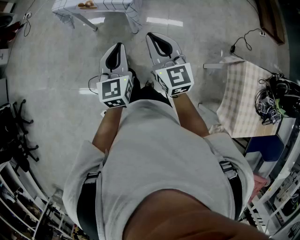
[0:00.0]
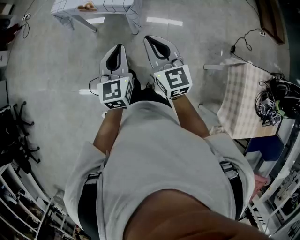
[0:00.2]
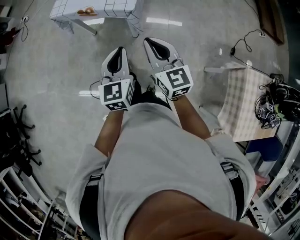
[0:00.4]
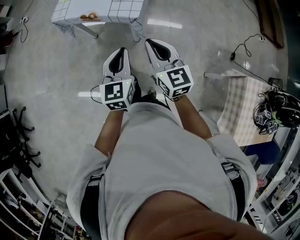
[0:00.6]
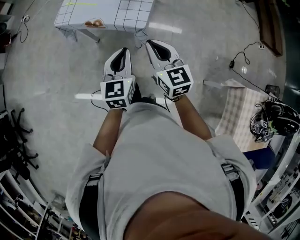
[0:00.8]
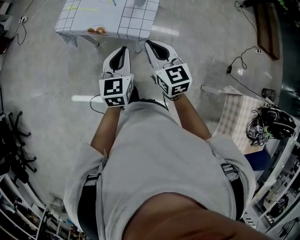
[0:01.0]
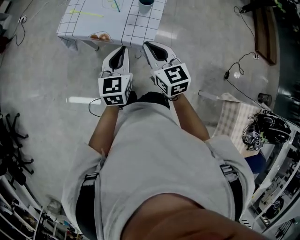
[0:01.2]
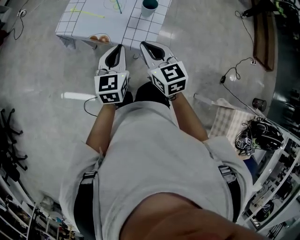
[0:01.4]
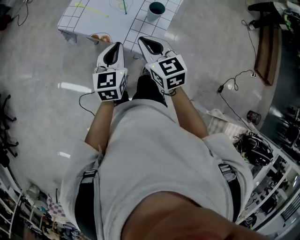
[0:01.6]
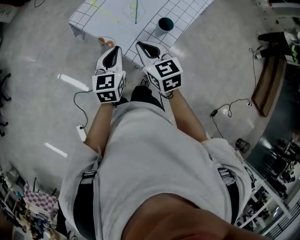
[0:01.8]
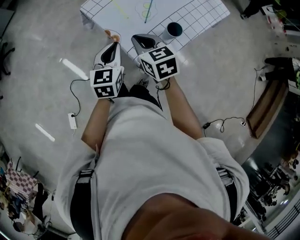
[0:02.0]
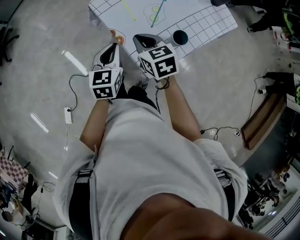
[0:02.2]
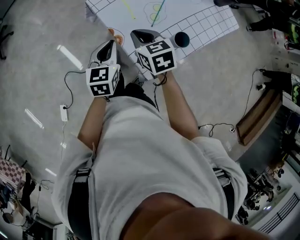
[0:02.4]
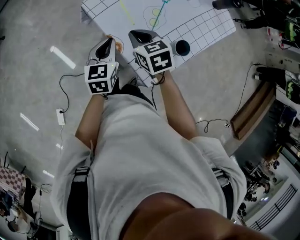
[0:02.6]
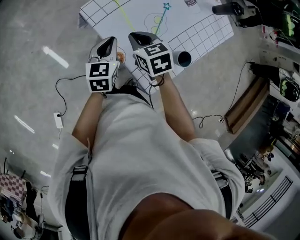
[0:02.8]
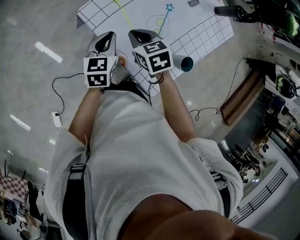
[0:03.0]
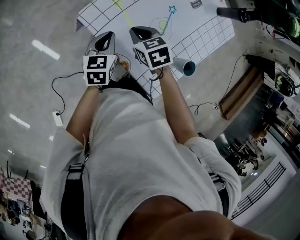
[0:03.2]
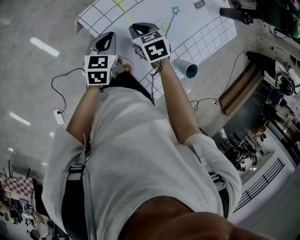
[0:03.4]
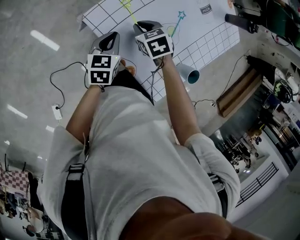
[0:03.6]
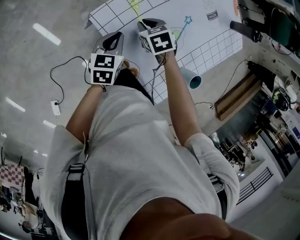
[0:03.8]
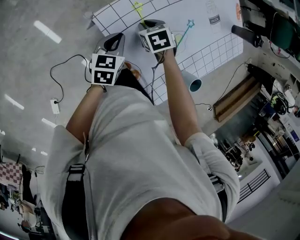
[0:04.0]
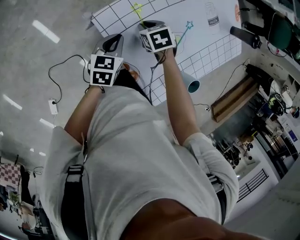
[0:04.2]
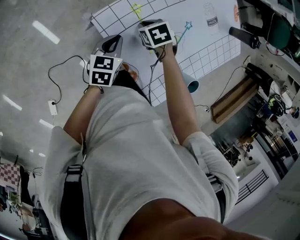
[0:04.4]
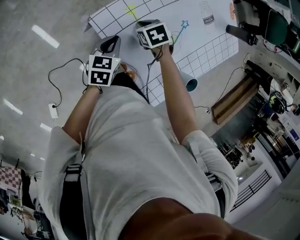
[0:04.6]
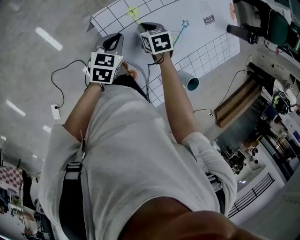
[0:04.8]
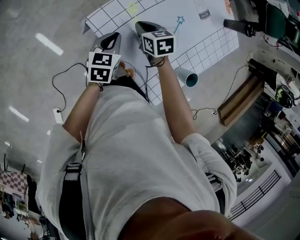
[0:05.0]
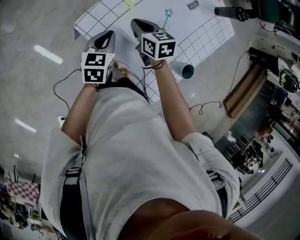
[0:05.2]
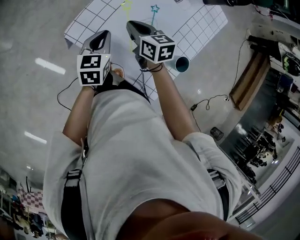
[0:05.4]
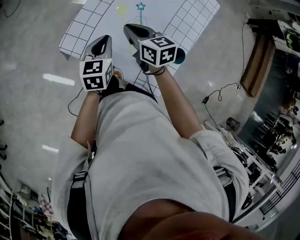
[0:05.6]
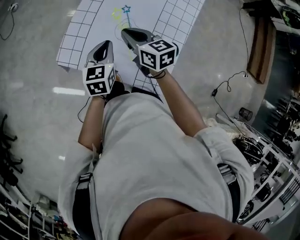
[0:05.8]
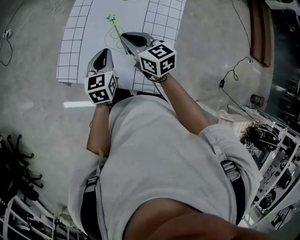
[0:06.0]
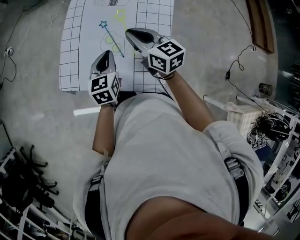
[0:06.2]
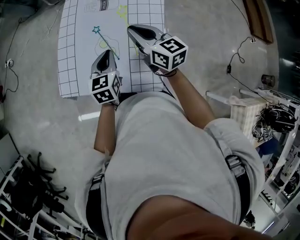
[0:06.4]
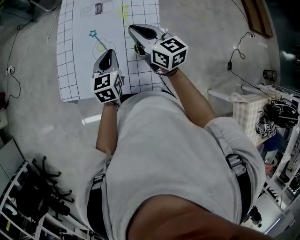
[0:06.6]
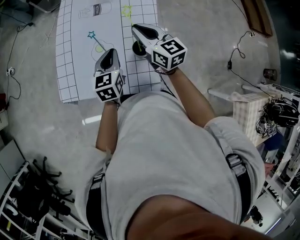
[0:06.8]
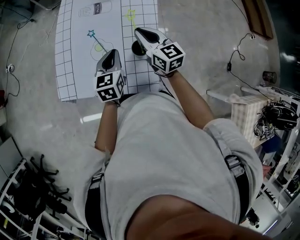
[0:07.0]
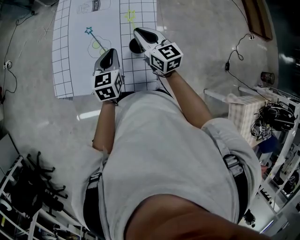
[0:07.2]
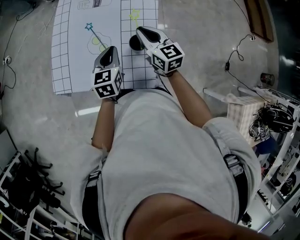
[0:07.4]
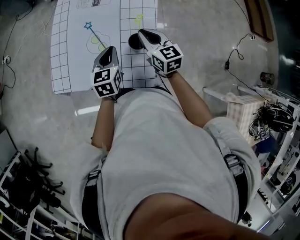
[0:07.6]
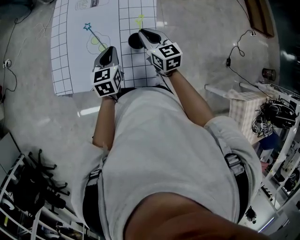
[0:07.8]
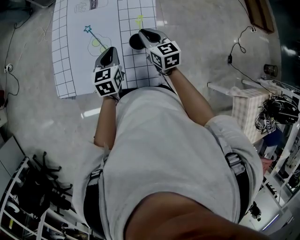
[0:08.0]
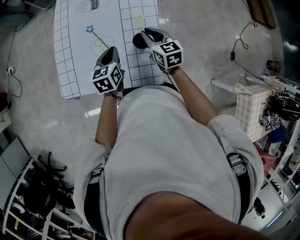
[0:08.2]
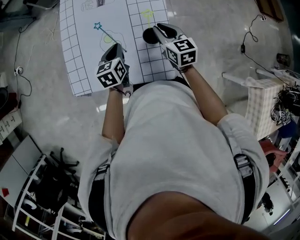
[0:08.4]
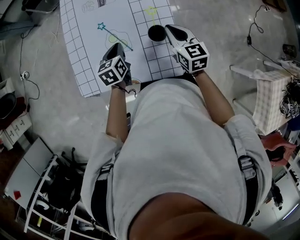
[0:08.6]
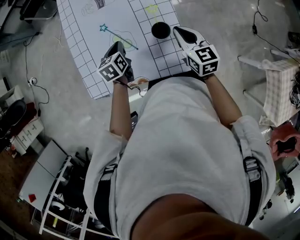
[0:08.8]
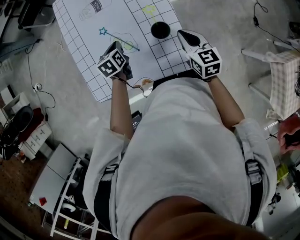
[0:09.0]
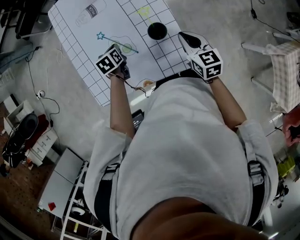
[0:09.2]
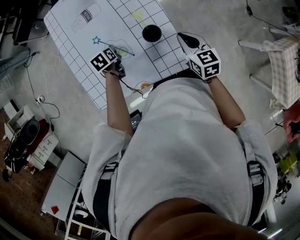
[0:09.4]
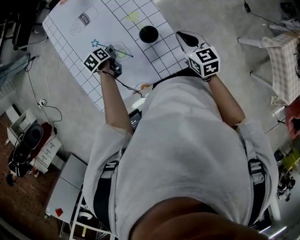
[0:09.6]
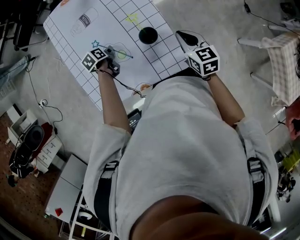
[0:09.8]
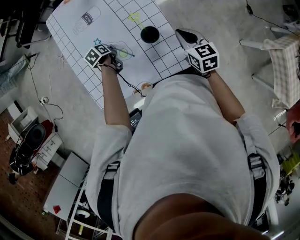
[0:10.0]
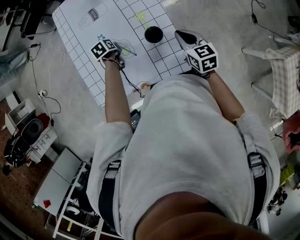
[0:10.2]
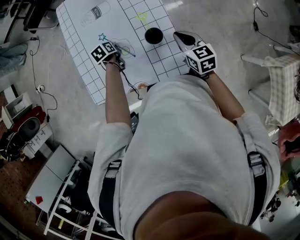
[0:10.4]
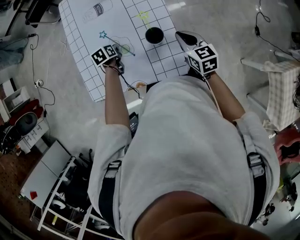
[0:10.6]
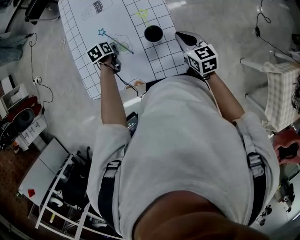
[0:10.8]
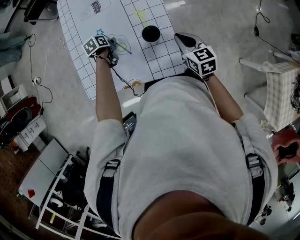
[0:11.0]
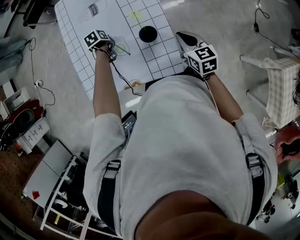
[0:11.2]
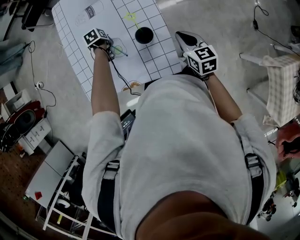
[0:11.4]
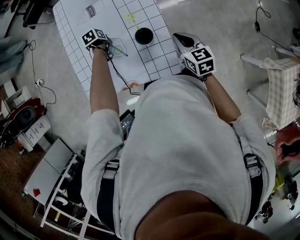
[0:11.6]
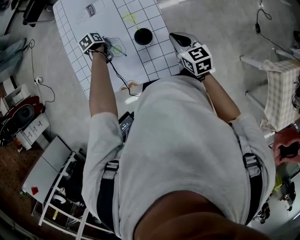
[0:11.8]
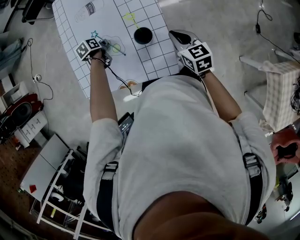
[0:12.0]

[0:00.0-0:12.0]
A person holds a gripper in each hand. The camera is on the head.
0:00.0 to 0:01.6: The two grippers travel together, forward, about 40 cm. The right gripper rotates roughly 30 degrees.
0:01.6 to 0:03.0: The left gripper changes place by approximately 30 cm, and swivels approximately 20 degrees. Meanwhile the right gripper ends up approximately 30 cm from where it was, and swivels about 40 degrees.
0:03.0 to 0:04.4: The left gripper travels downward by about 5 cm; the right gripper goes about 10 cm downward, and changes its angle by about 30 degrees.
0:04.4 to 0:06.0: The left gripper ends up approximately 25 cm from where it was, and swivels about 30 degrees. The right gripper moves about 30 cm, and tilts its fingers about 50 degrees upward.
0:06.0 to 0:07.6: Both grippers move to the right, some 15 cm. The right gripper turns by some 20 degrees.
0:07.6 to 0:09.0: The left gripper moves downward, to the left and forward, some 15 cm, and rotates about 20 degrees, while the right gripper is displaced backward by some 5 cm, and changes its angle by approximately 20 degrees.
0:09.0 to 0:10.4: The left gripper goes some 5 cm downward.
0:10.4 to 0:12.0: The grippers make only small movements.

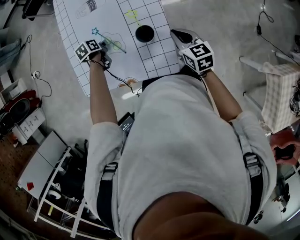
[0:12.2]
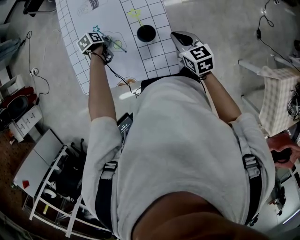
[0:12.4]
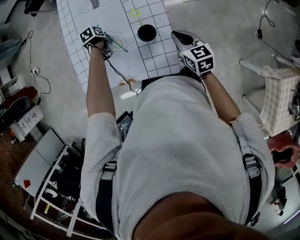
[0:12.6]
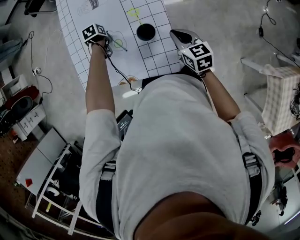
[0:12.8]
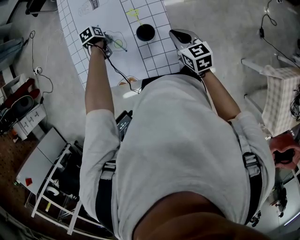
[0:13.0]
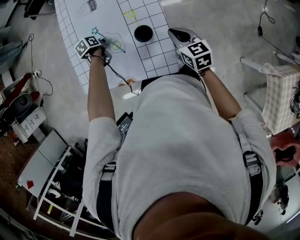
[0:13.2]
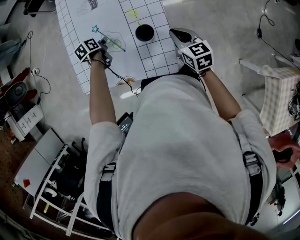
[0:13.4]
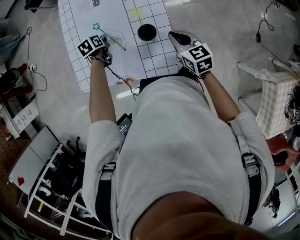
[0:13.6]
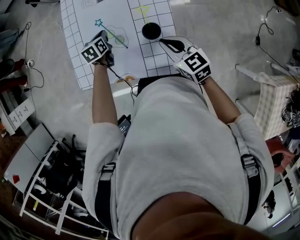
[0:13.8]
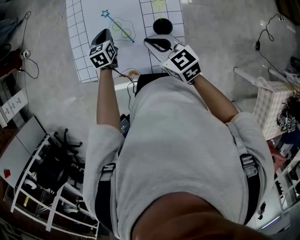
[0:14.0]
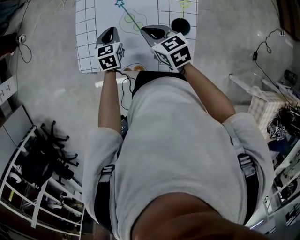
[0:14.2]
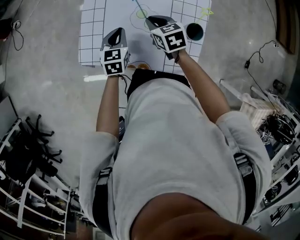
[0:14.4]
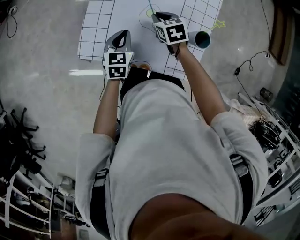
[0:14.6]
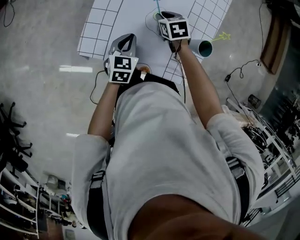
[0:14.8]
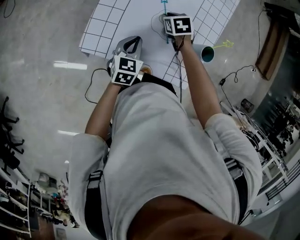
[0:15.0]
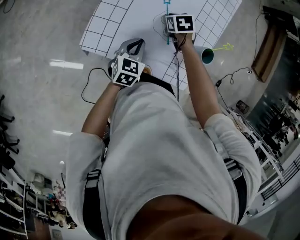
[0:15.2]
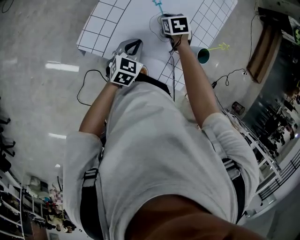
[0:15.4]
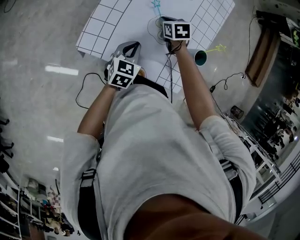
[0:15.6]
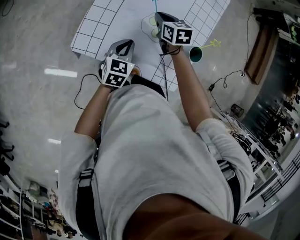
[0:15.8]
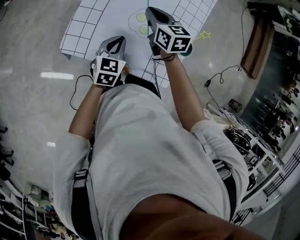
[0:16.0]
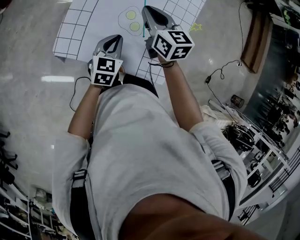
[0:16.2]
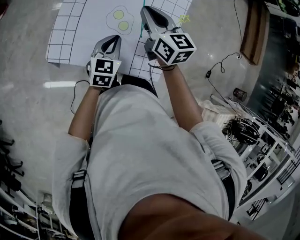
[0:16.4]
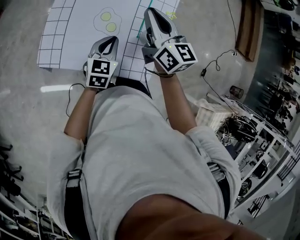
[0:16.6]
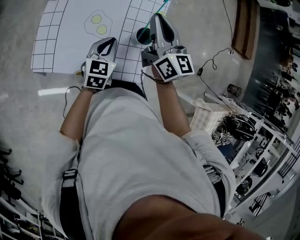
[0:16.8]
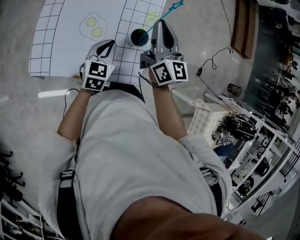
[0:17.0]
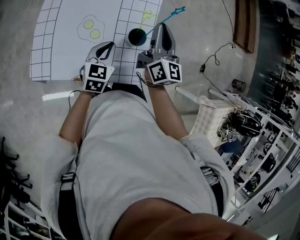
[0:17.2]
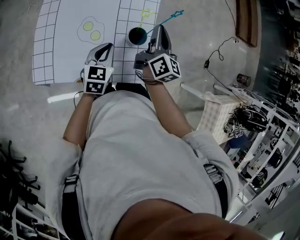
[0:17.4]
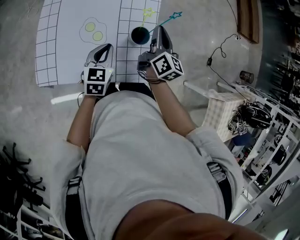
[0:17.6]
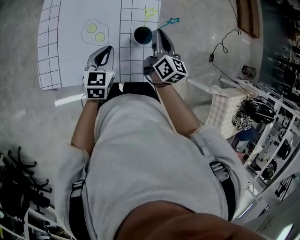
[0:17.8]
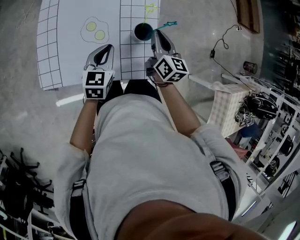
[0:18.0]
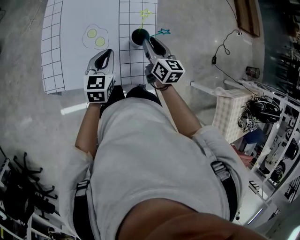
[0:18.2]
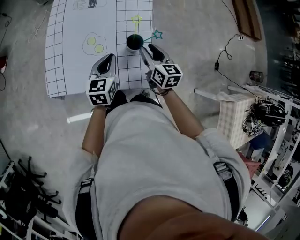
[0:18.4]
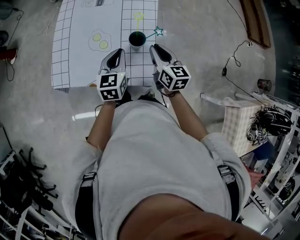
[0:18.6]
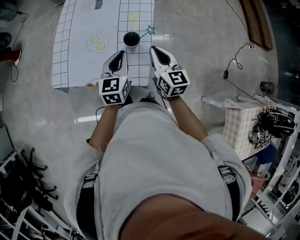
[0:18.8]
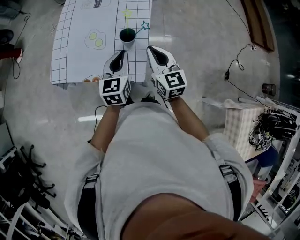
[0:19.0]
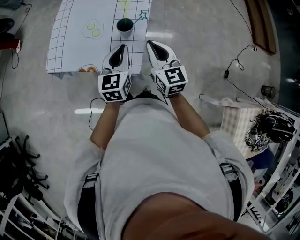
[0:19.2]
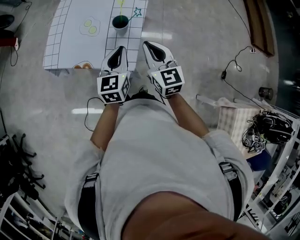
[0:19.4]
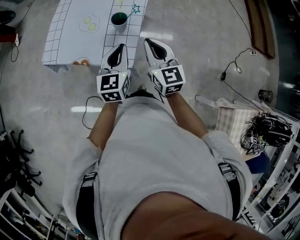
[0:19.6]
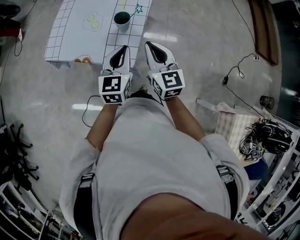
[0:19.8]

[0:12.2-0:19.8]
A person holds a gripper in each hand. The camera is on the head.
0:12.2 to 0:13.8: The left gripper rotates some 20 degrees. The right gripper changes place by some 10 cm.
0:13.8 to 0:15.2: The right gripper heads to the left, forward and downward, covering roughly 35 cm, and tips its fingers downward by about 40 degrees; the left gripper goes approximately 15 cm to the left and backward.
0:15.2 to 0:16.8: The right gripper moves upward and to the right, approximately 35 cm, and tilts its fingers some 70 degrees upward. Meanwhile the left gripper moves to the right and upward, approximately 20 cm.
0:16.8 to 0:18.2: The right gripper travels downward and to the right by roughly 15 cm, changes its angle by some 30 degrees, and opens up.
0:18.2 to 0:19.8: The left gripper travels to the right, backward and upward by some 25 cm, and changes its angle by some 20 degrees, while the right gripper is displaced backward, upward and to the right by roughly 25 cm, changes its angle by roughly 30 degrees, and closes.

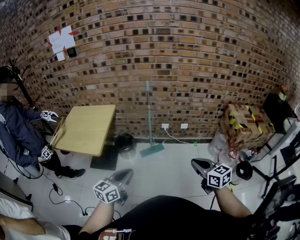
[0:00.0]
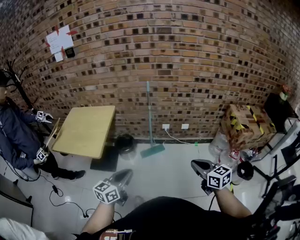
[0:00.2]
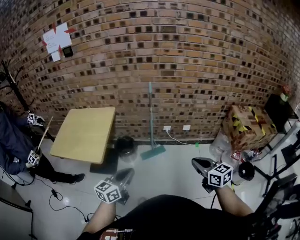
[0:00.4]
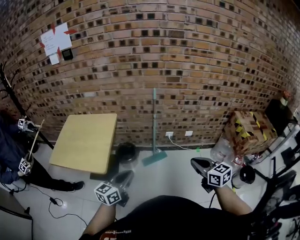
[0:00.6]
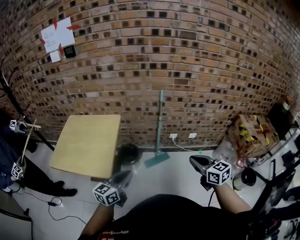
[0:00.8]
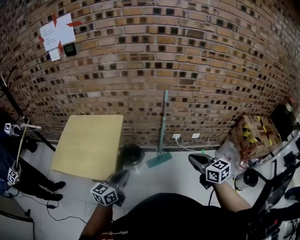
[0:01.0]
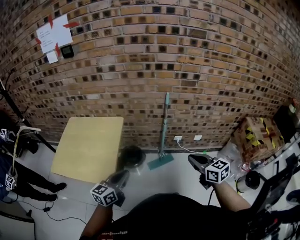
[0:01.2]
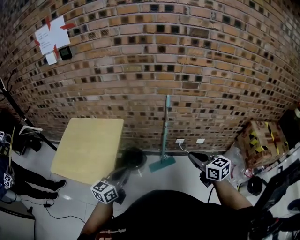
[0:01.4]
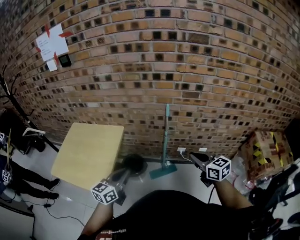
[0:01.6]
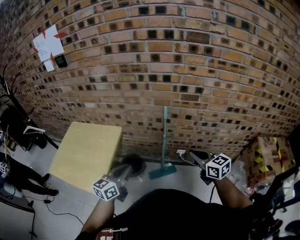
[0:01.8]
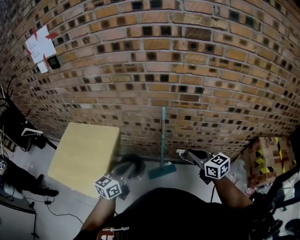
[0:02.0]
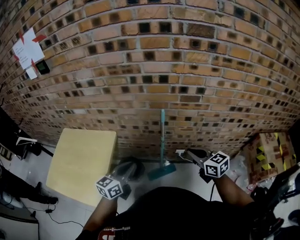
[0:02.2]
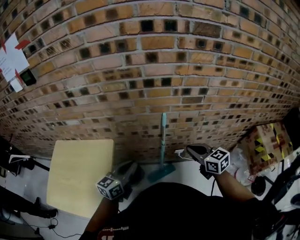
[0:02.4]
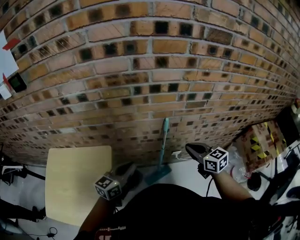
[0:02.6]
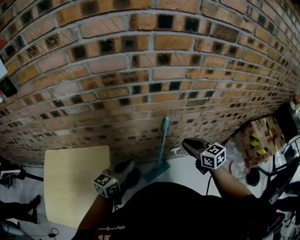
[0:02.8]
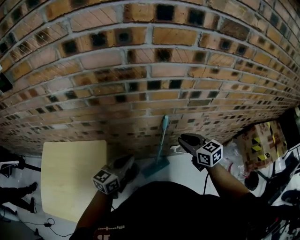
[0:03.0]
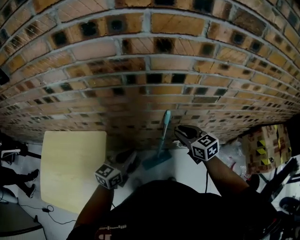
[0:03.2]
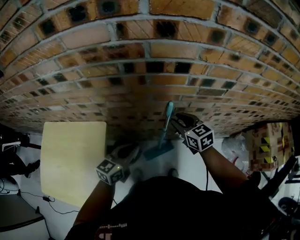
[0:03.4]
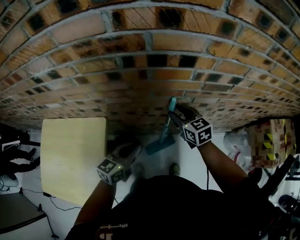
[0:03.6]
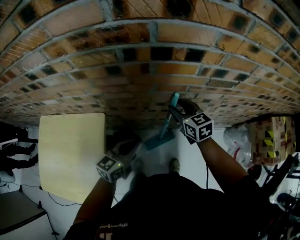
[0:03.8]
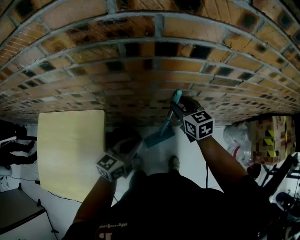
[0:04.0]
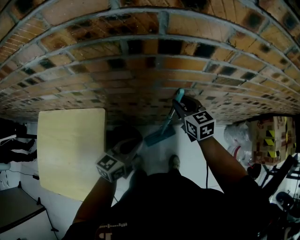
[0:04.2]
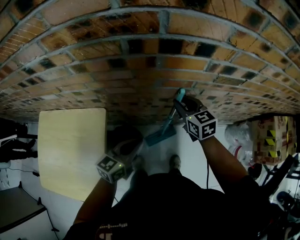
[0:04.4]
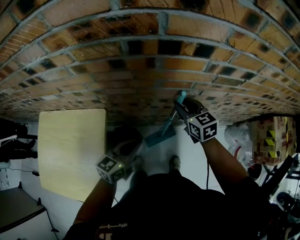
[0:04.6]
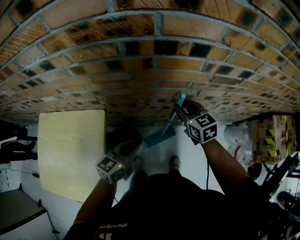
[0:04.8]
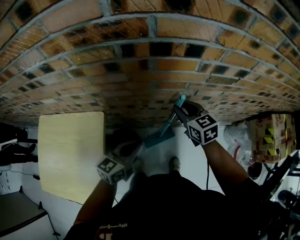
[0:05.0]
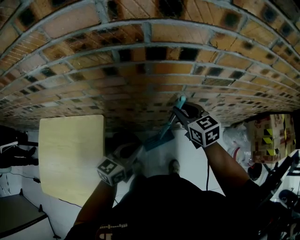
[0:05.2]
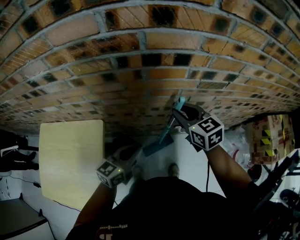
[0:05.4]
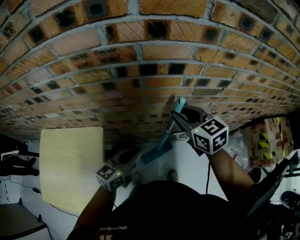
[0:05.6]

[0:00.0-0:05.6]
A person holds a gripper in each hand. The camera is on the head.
0:00.0 to 0:01.4: Both grippers travel together forward and to the left, roughly 35 cm.
0:01.4 to 0:02.8: Both grippers move forward, approximately 30 cm.
0:02.8 to 0:04.2: The right gripper goes about 15 cm forward and downward; the left gripper moves downward and to the right, some 10 cm.
0:04.2 to 0:05.6: The right gripper shifts roughly 15 cm upward. The left gripper shifts some 5 cm upward.
